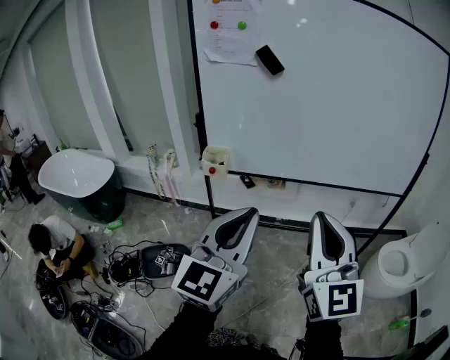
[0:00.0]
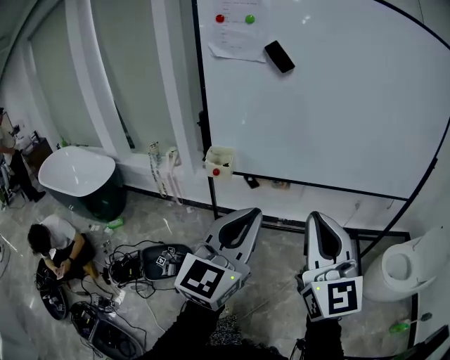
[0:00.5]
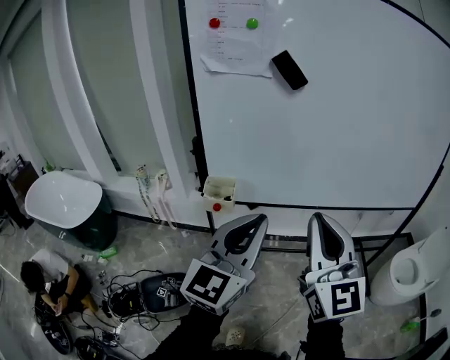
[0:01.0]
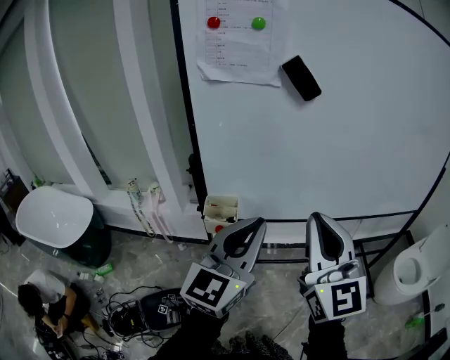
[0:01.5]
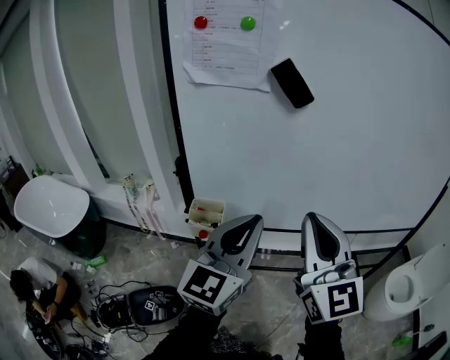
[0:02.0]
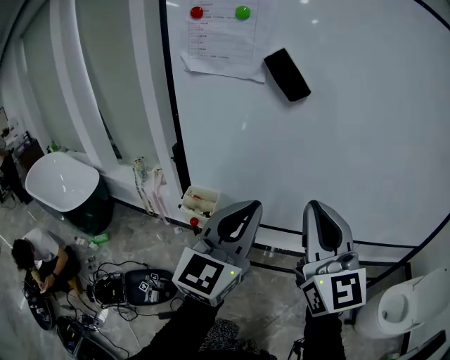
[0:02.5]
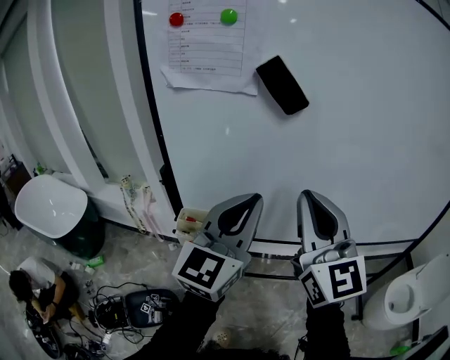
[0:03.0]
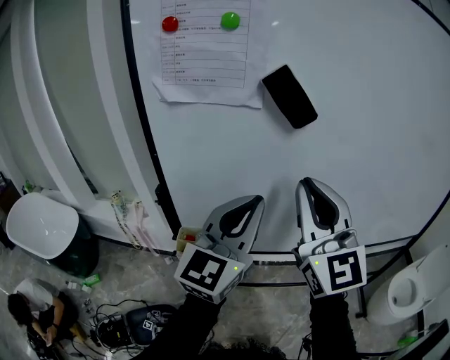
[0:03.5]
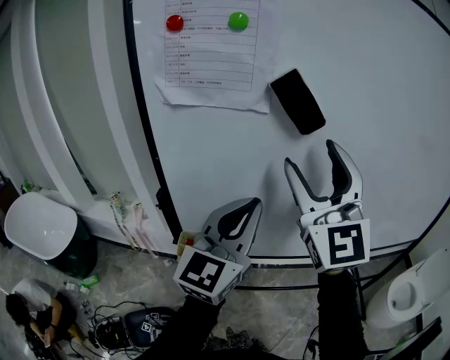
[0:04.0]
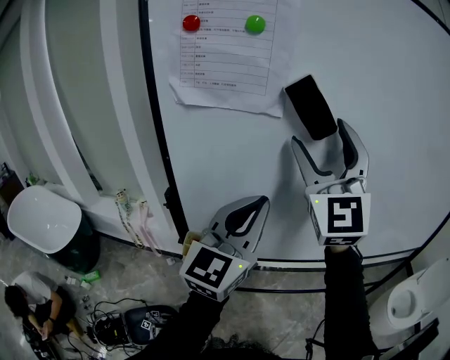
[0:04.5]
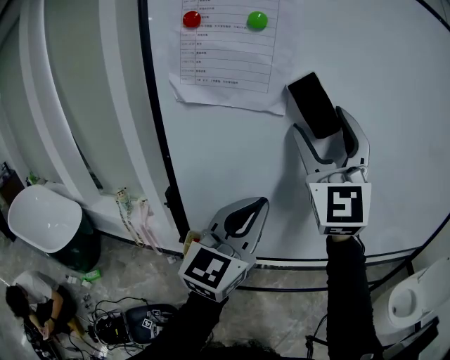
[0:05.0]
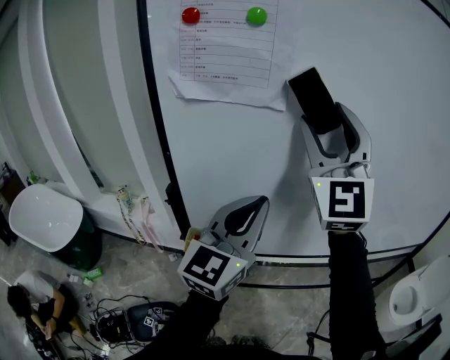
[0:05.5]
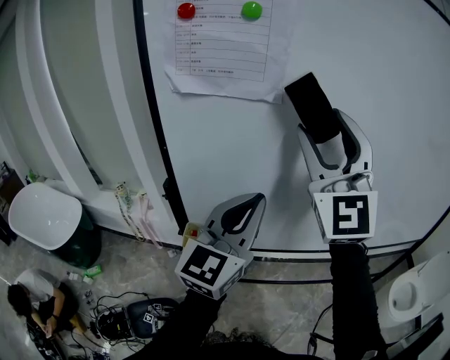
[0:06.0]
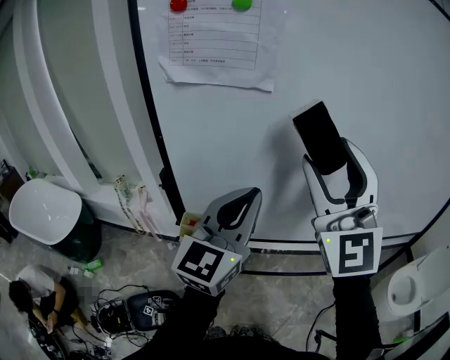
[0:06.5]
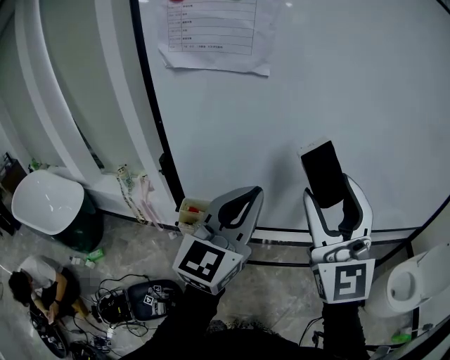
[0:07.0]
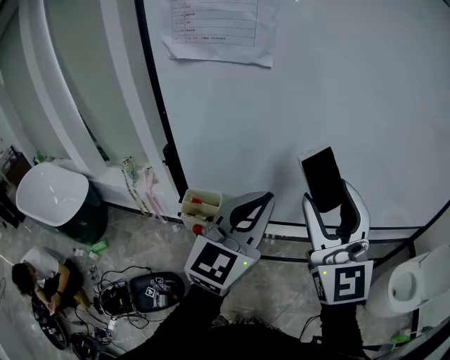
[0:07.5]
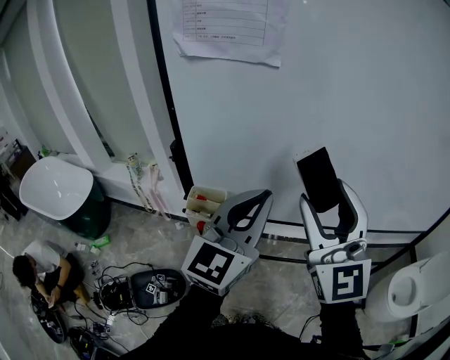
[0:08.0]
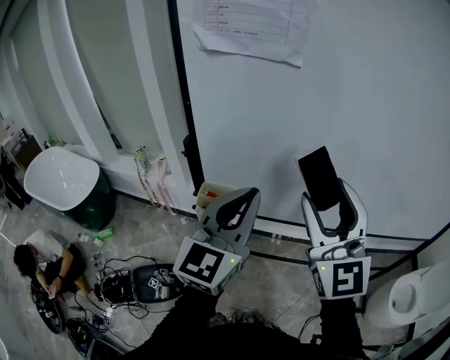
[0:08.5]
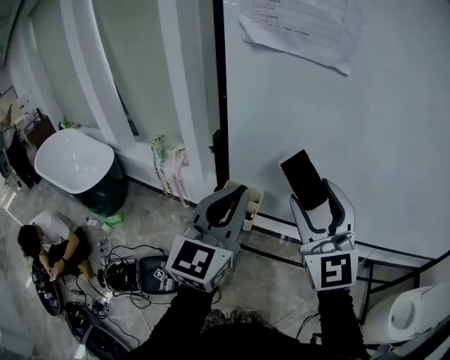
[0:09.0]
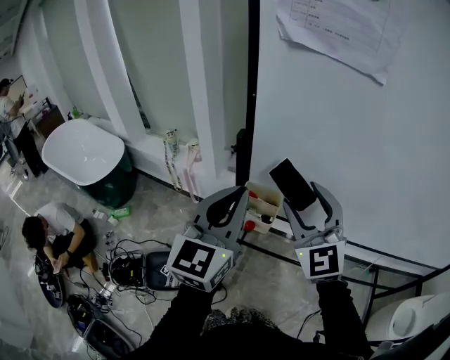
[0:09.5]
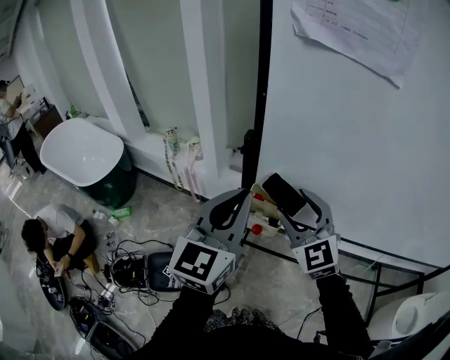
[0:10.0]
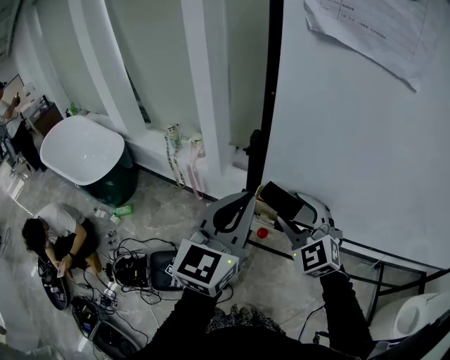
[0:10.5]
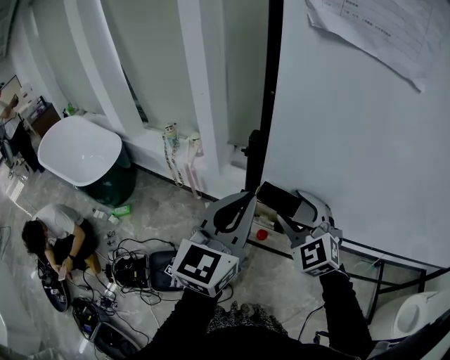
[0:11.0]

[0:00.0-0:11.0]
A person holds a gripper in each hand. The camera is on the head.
0:00.0 to 0:02.0: The right gripper heads forward and to the left, covering approximately 30 cm; the left gripper moves forward, approximately 30 cm.
0:02.0 to 0:03.5: Both grippers travel together forward, approximately 15 cm.
0:03.5 to 0:05.5: The right gripper goes roughly 15 cm upward and forward, changes its angle by approximately 20 degrees, and opens its fingers.
0:05.5 to 0:07.5: The left gripper is displaced backward by approximately 5 cm; the right gripper travels downward and backward by about 20 cm, and turns by approximately 20 degrees.
0:07.5 to 0:09.0: The left gripper moves to the left, approximately 15 cm, and swivels about 20 degrees, while the right gripper moves to the left and downward, about 15 cm.
0:09.0 to 0:11.0: The right gripper moves downward, forward and to the left, about 25 cm, and swivels about 30 degrees, while the left gripper is displaced to the left and forward by approximately 10 cm.

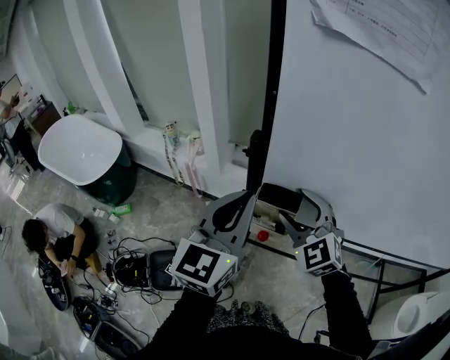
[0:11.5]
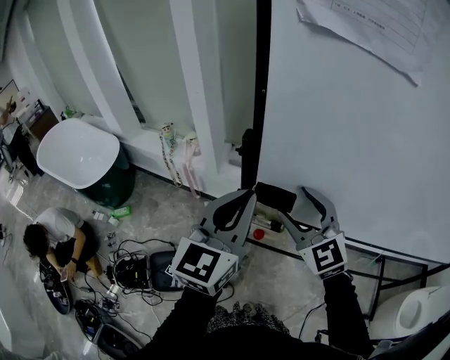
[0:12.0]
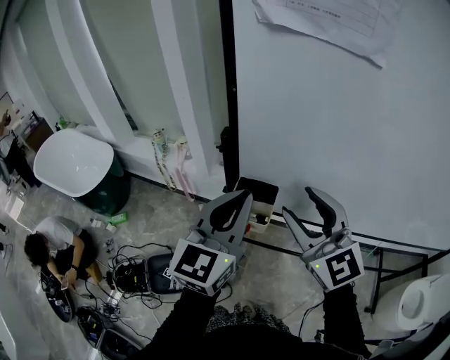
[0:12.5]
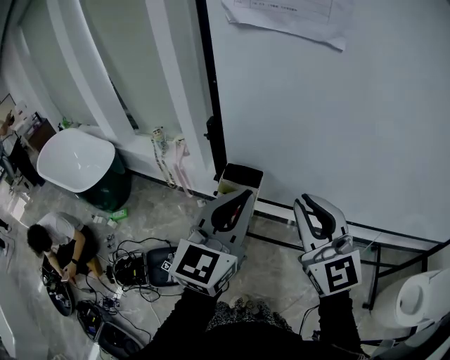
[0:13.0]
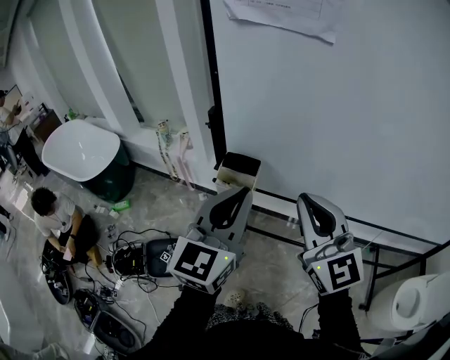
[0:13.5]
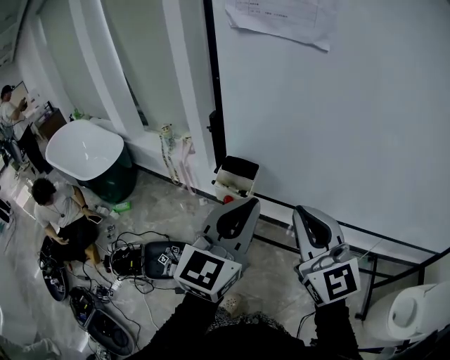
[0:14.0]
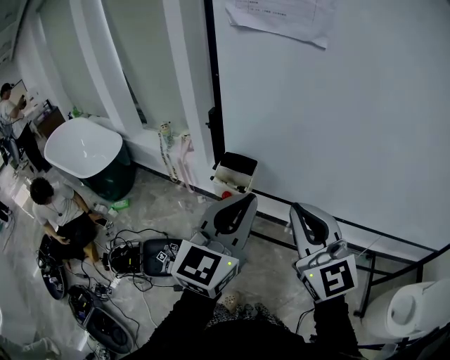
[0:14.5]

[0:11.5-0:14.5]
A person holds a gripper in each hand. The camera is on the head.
0:11.5 to 0:13.0: The right gripper shifts approximately 20 cm backward, upward and to the right, rotates about 30 degrees, and closes; the left gripper is displaced to the right and backward by some 15 cm.
0:13.0 to 0:14.5: The grippers both shift backward by approximately 5 cm.

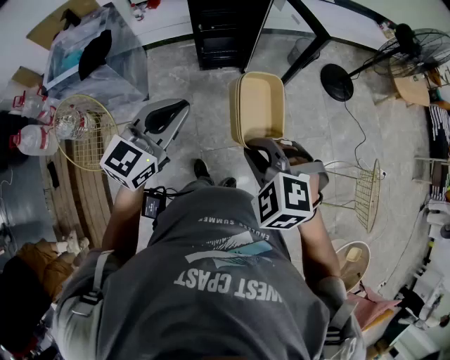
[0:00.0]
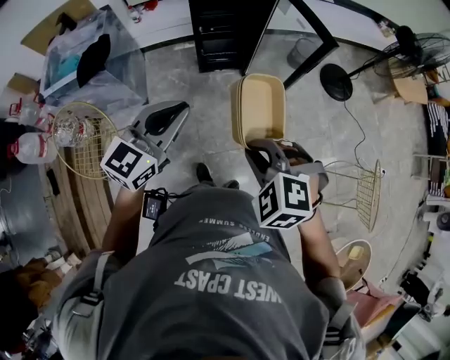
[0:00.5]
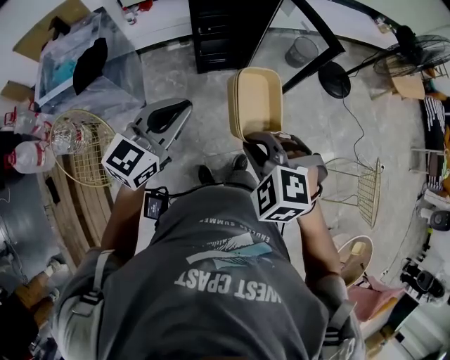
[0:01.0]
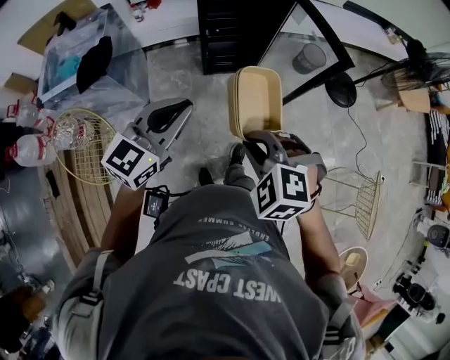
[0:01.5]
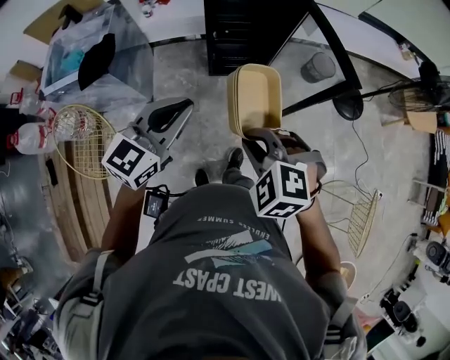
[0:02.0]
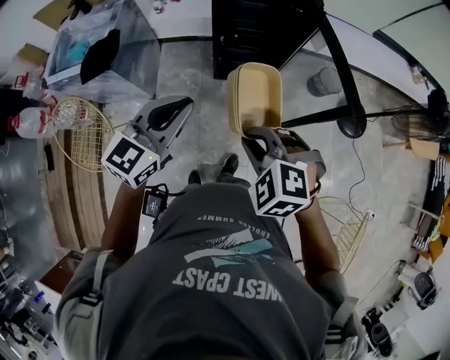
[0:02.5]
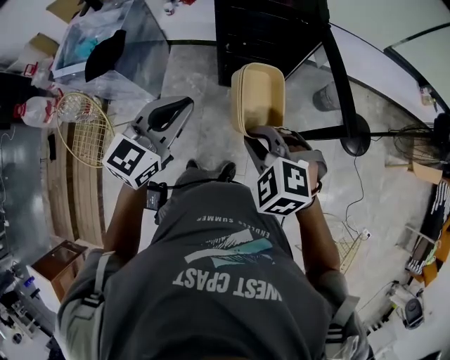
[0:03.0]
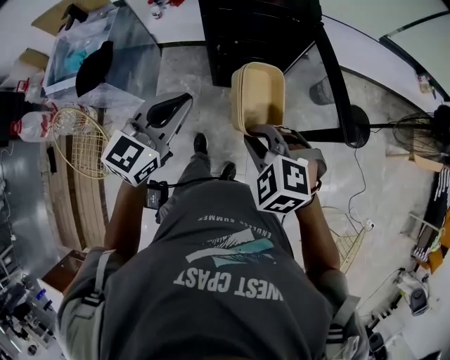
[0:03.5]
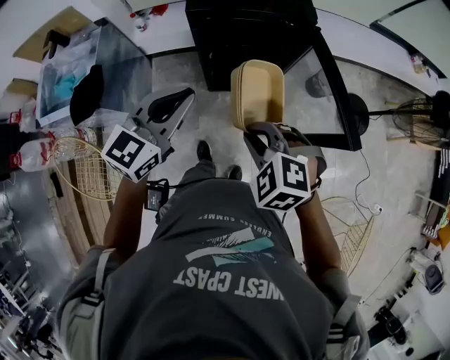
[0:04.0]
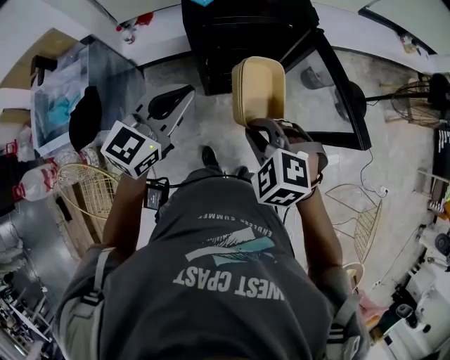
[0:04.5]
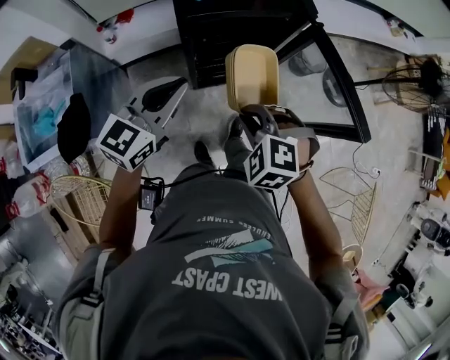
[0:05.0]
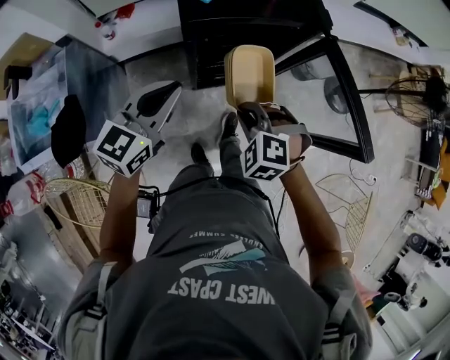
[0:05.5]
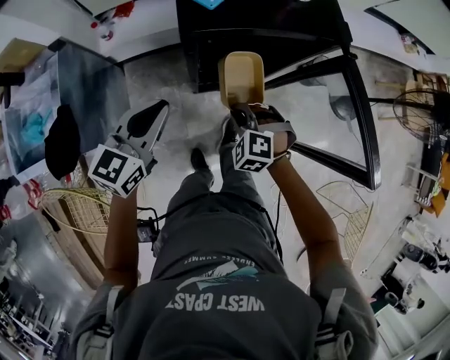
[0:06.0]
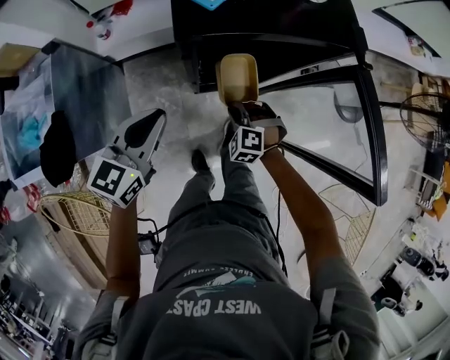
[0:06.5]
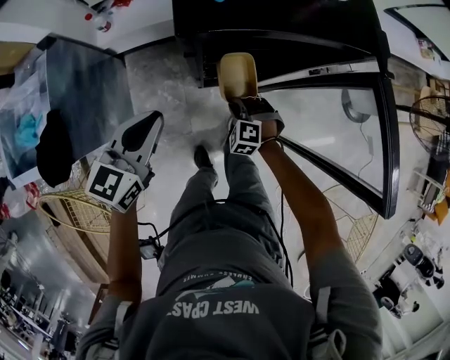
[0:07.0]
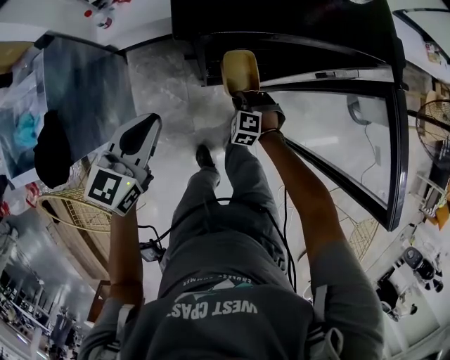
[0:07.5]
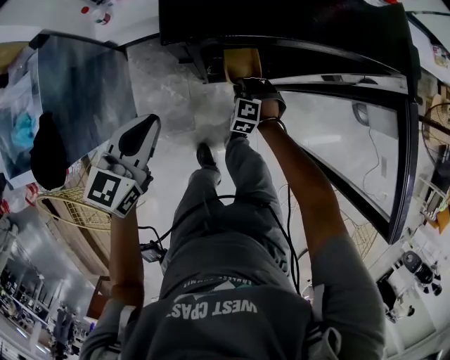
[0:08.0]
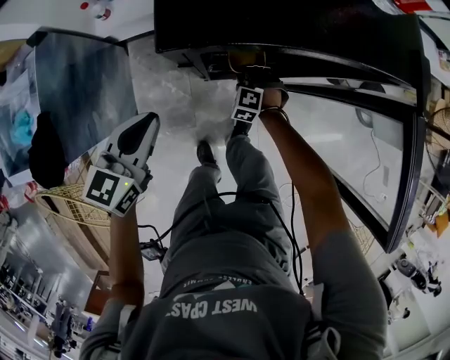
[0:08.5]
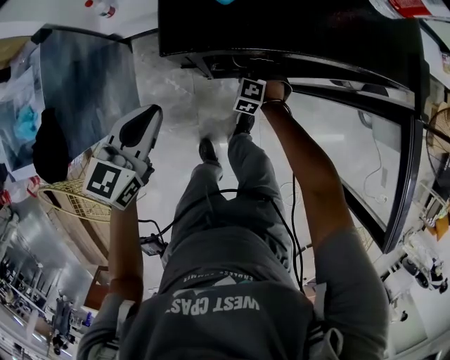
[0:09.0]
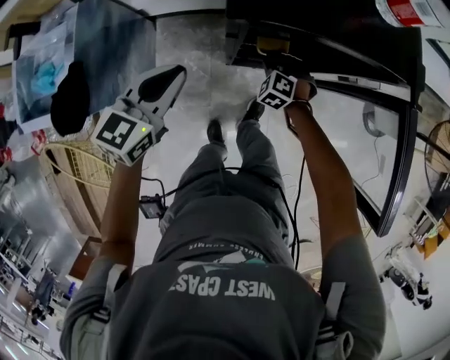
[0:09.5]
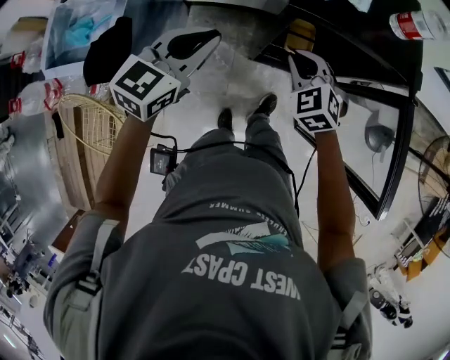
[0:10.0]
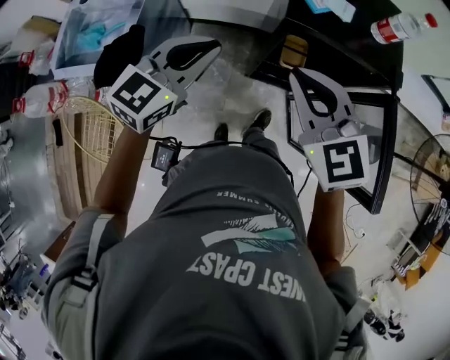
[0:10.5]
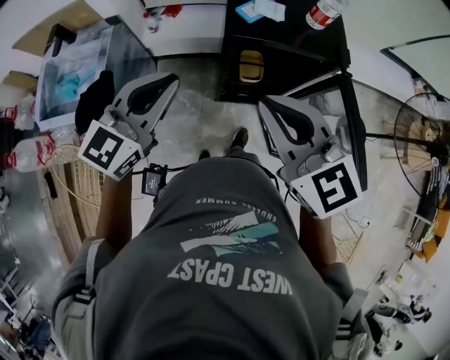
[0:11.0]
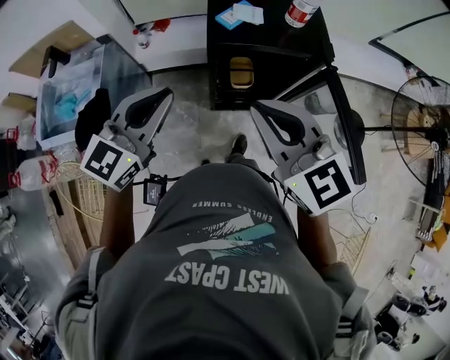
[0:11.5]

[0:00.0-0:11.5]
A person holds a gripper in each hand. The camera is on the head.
0:00.0 to 0:02.0: Both grippers move forward, about 15 cm.
0:02.0 to 0:04.0: Both grippers travel together forward, roughly 20 cm.
0:04.0 to 0:06.0: The left gripper travels downward, forward and to the left by roughly 25 cm. Meanwhile the right gripper goes some 30 cm downward and forward.
0:06.0 to 0:07.5: The left gripper heads downward, covering some 10 cm. Meanwhile the right gripper moves downward, approximately 25 cm.
0:07.5 to 0:09.5: The right gripper moves forward and upward, roughly 10 cm.
0:09.5 to 0:11.5: The left gripper heads upward, covering about 25 cm, and rotates approximately 20 degrees, while the right gripper shifts roughly 50 cm upward, and angles its fingers upward, by roughly 40 degrees.

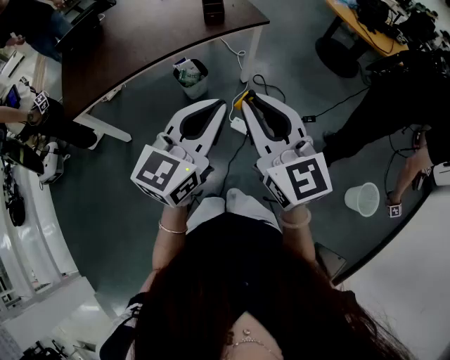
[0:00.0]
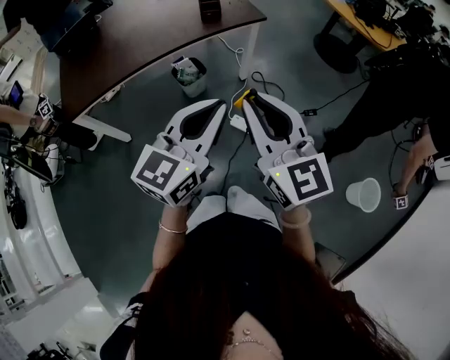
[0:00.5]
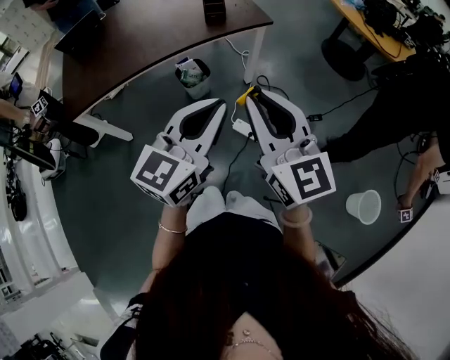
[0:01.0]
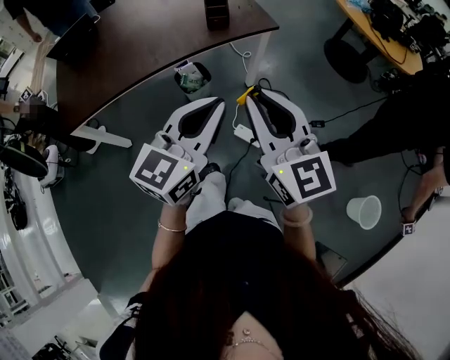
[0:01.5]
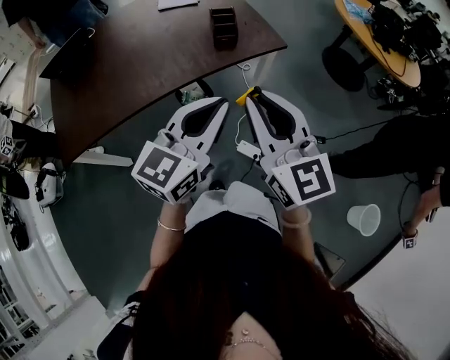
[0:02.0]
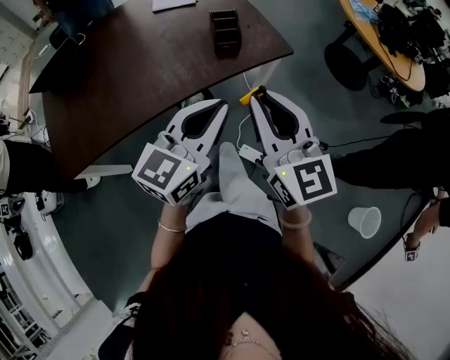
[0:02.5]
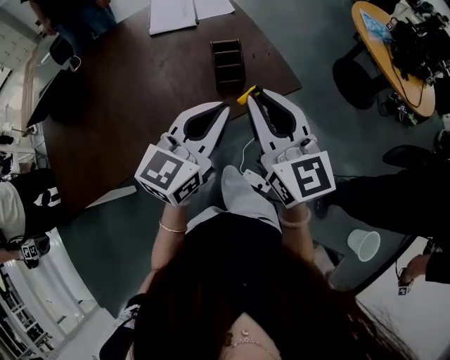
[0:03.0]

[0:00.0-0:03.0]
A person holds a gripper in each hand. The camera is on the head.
0:00.0 to 0:01.5: Both grippers move forward, some 10 cm.
0:01.5 to 0:03.0: Both grippers travel together forward, roughly 30 cm.
